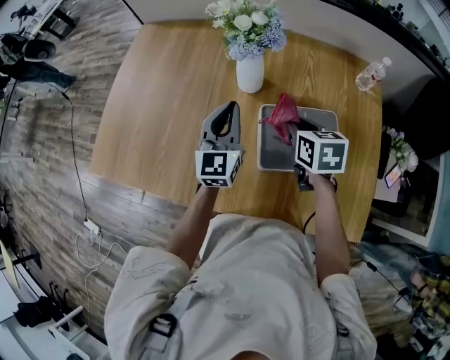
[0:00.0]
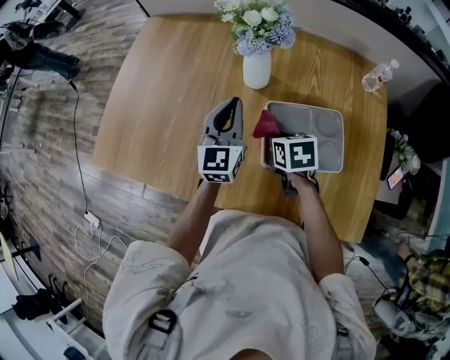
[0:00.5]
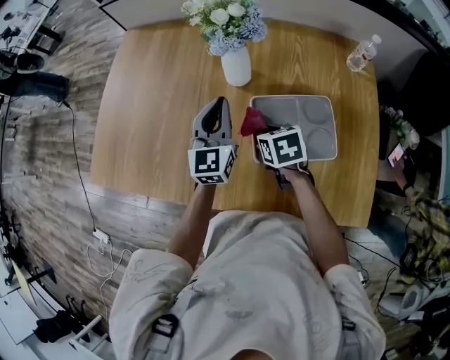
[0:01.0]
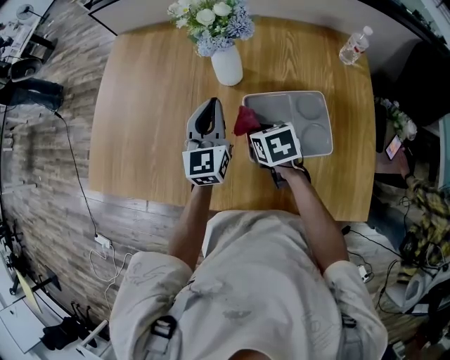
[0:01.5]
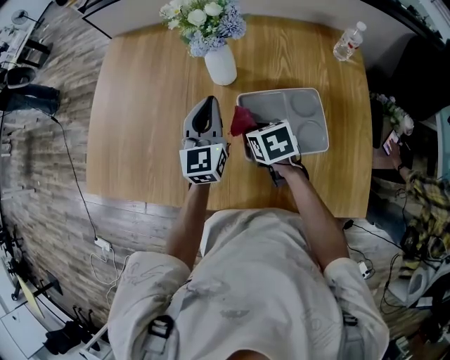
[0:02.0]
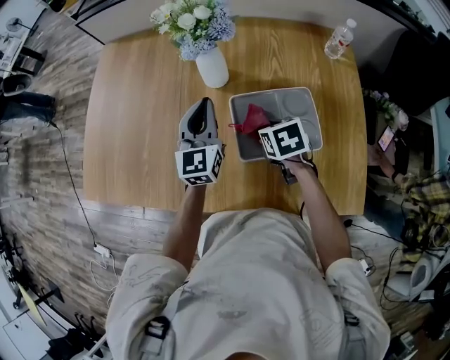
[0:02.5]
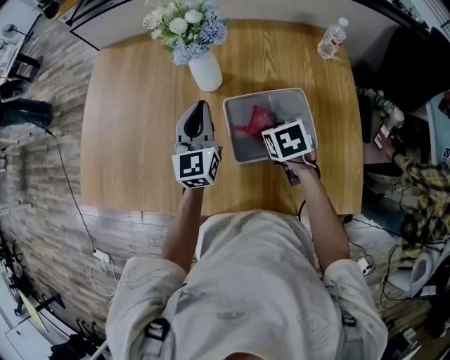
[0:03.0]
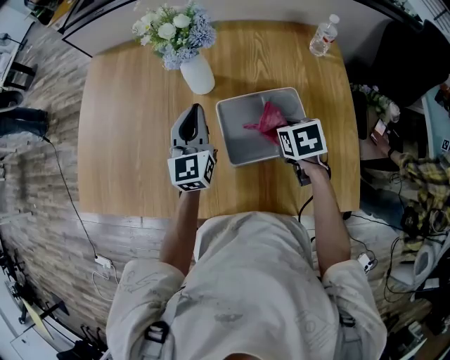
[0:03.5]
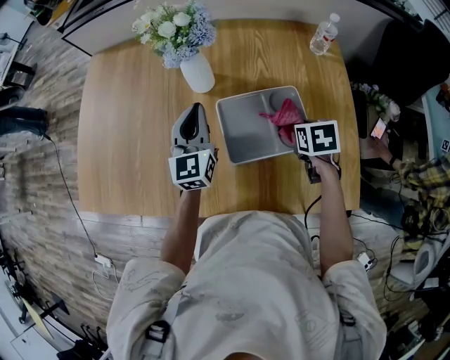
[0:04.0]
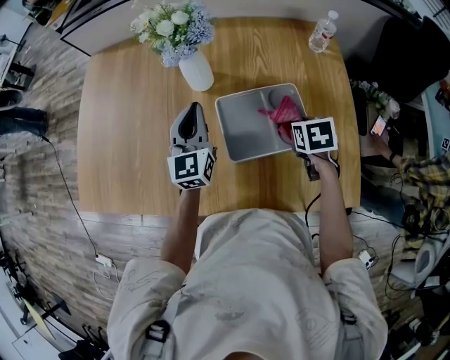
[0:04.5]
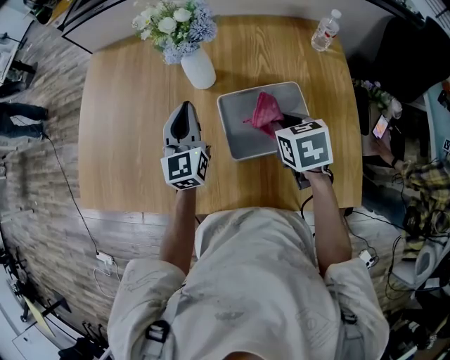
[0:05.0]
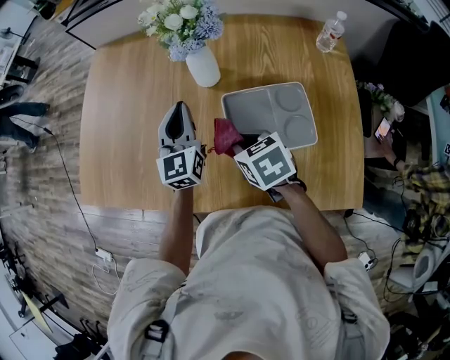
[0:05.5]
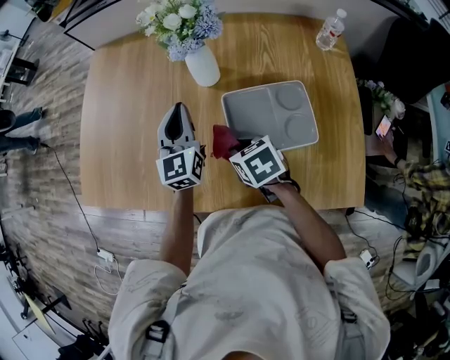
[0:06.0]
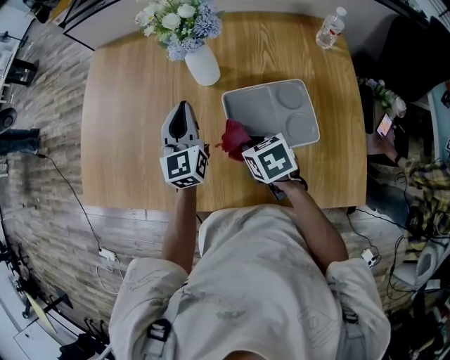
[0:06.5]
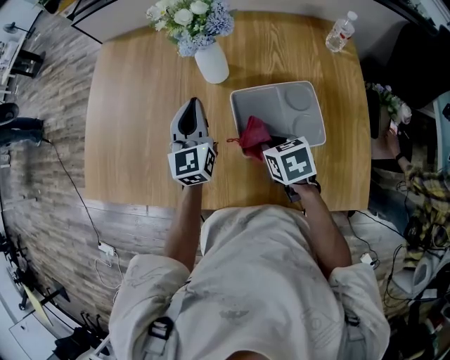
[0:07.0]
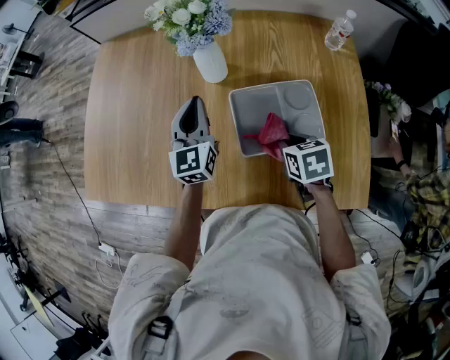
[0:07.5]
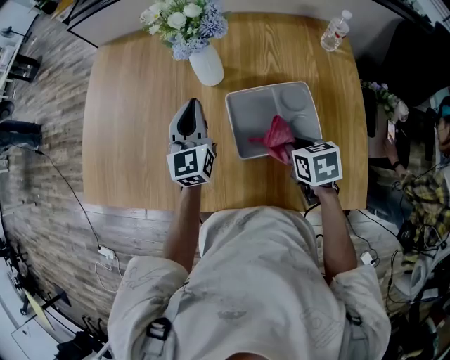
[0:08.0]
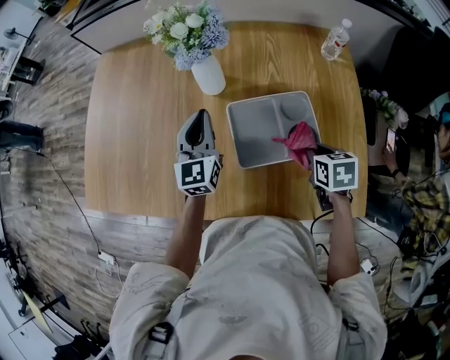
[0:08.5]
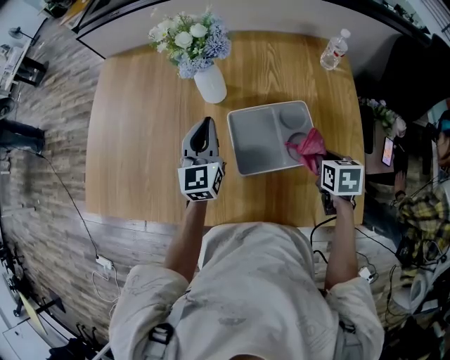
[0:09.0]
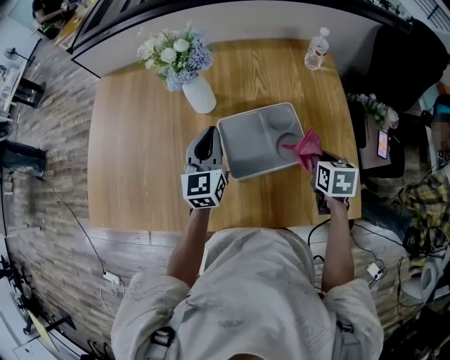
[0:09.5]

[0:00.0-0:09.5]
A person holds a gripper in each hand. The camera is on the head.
0:00.0 to 0:02.0: The right gripper is displaced downward and to the left by approximately 10 cm.
0:02.0 to 0:04.0: The right gripper is displaced to the right by some 20 cm, and swivels roughly 20 degrees.
0:04.0 to 0:05.5: The left gripper shifts approximately 5 cm to the left, while the right gripper heads to the left, covering approximately 20 cm, and swivels approximately 30 degrees.
0:05.5 to 0:07.5: The right gripper heads to the right, covering about 10 cm.
0:07.5 to 0:09.5: The left gripper shifts some 5 cm to the right; the right gripper shifts approximately 15 cm to the right, and changes its angle by about 20 degrees.

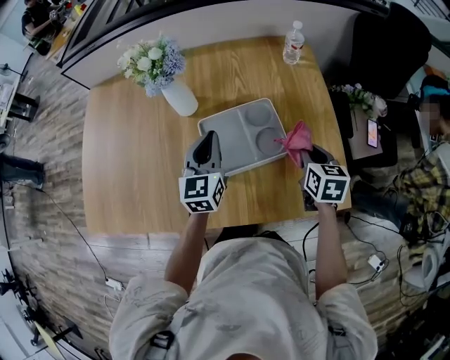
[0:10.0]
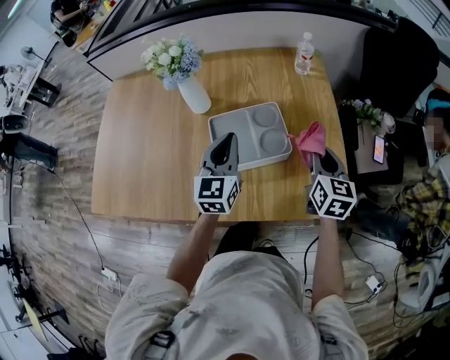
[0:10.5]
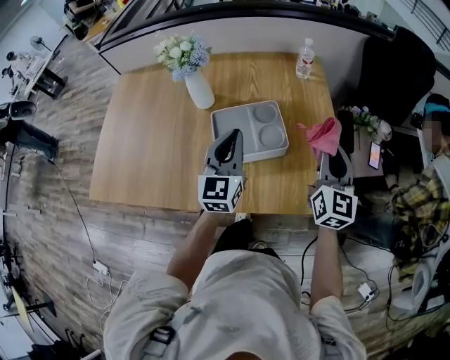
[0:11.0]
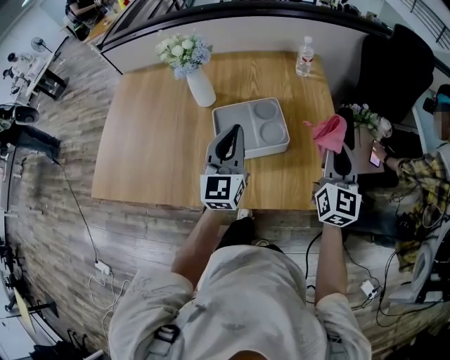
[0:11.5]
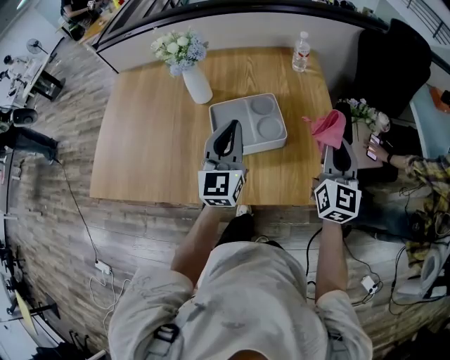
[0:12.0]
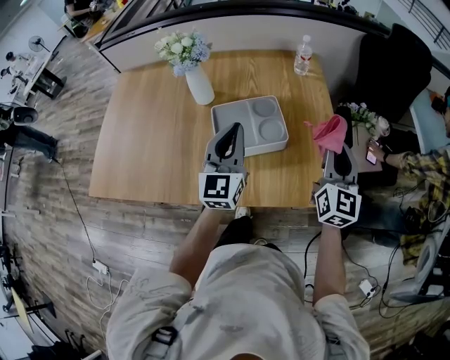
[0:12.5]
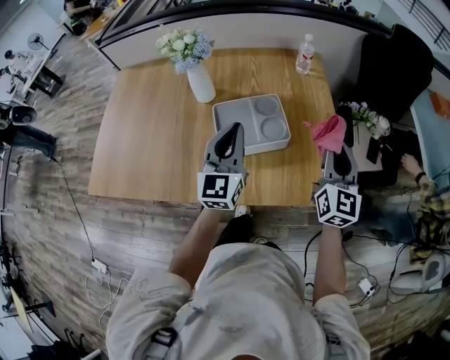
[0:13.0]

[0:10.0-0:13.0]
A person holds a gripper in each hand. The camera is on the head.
0:10.0 to 0:11.5: The left gripper heads upward, backward and to the right, covering roughly 15 cm, while the right gripper heads upward, covering some 15 cm, and angles its fingers upward, by some 40 degrees.
0:11.5 to 0:13.0: Both grippers stay about where they are.

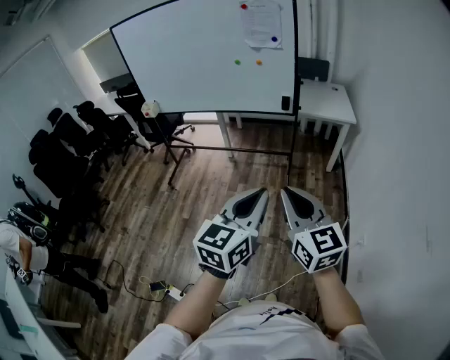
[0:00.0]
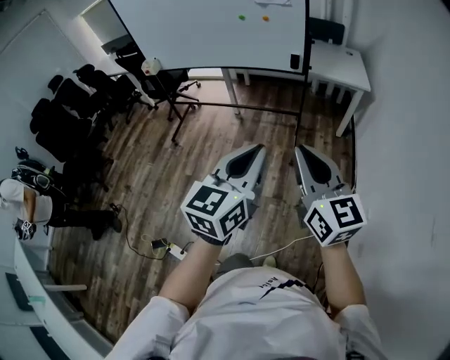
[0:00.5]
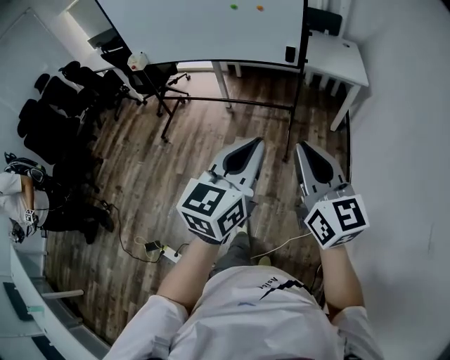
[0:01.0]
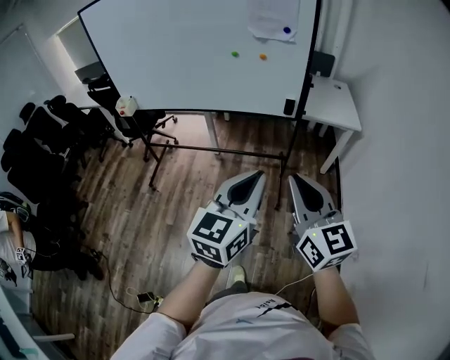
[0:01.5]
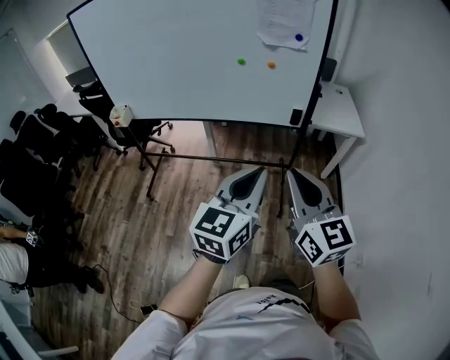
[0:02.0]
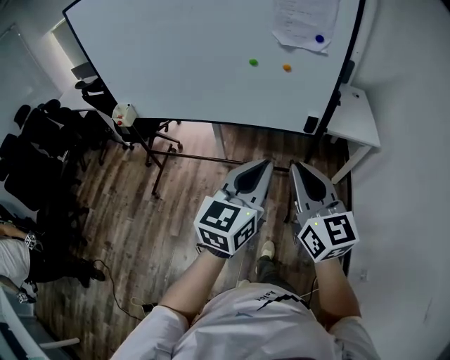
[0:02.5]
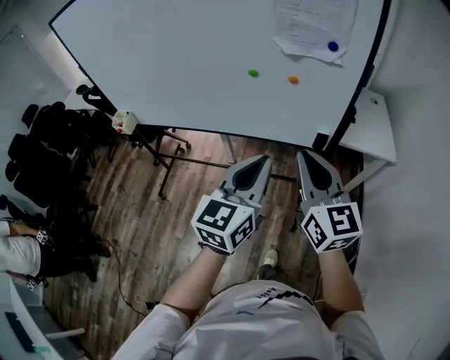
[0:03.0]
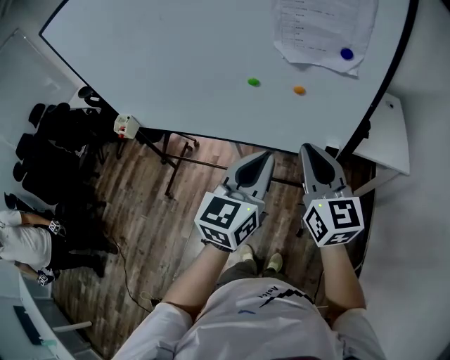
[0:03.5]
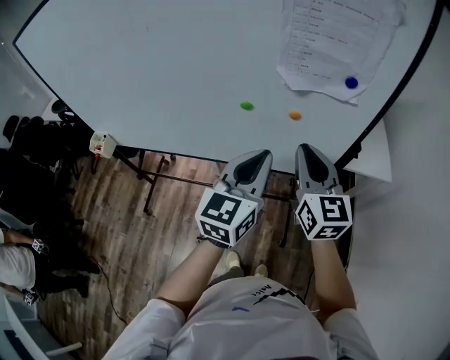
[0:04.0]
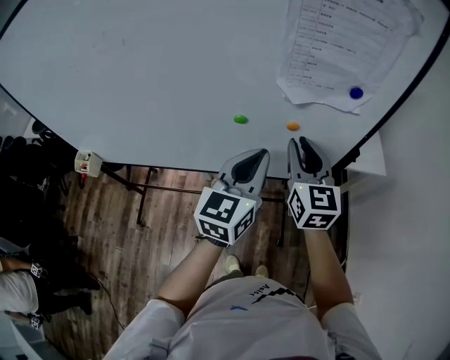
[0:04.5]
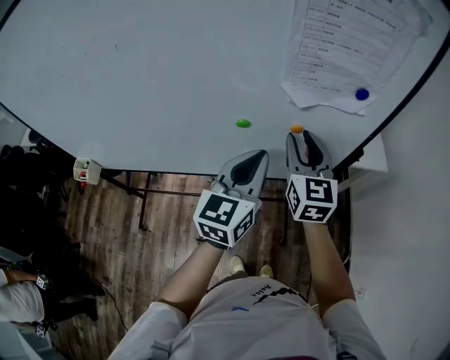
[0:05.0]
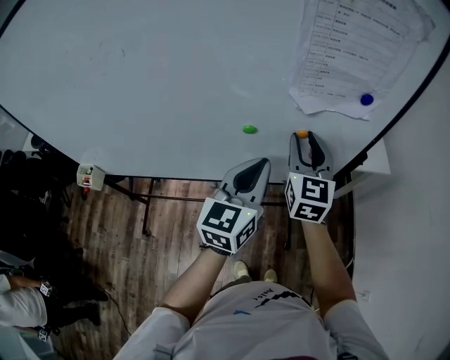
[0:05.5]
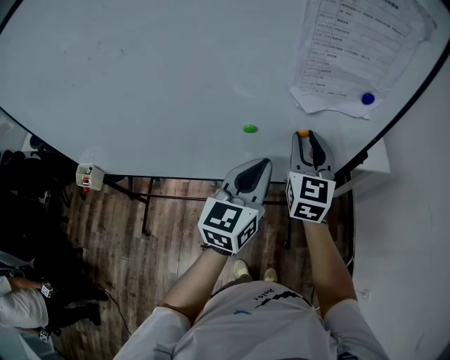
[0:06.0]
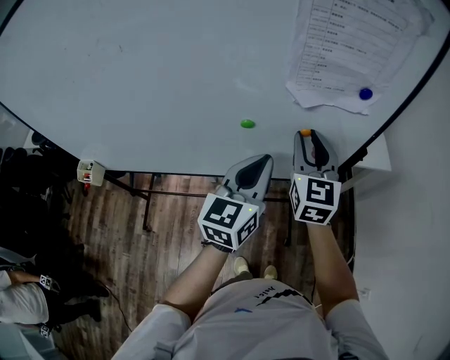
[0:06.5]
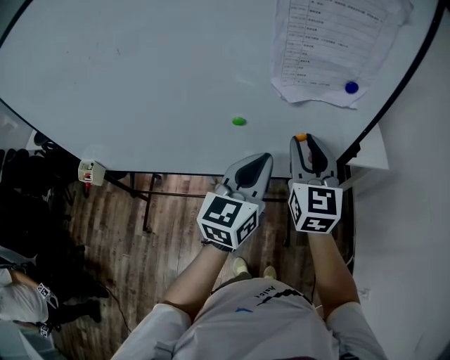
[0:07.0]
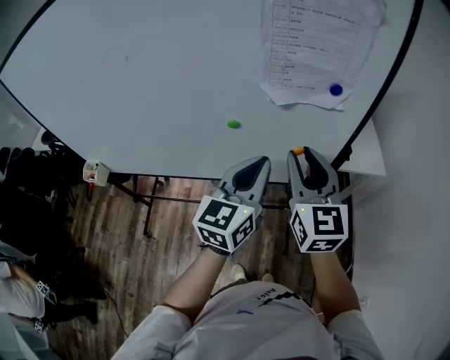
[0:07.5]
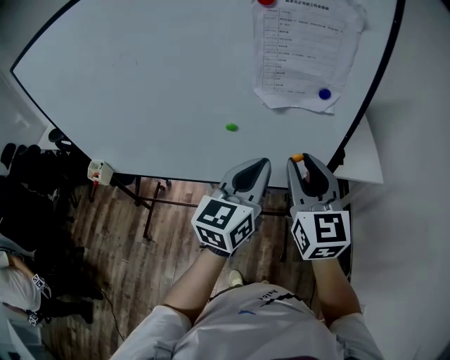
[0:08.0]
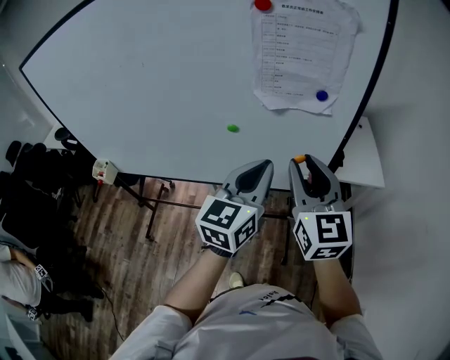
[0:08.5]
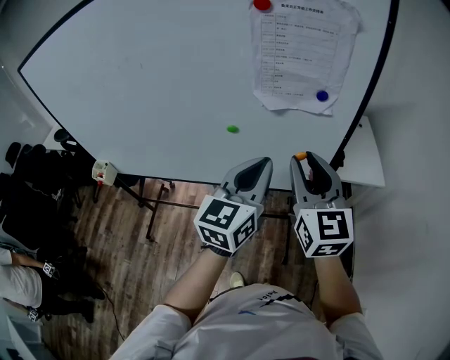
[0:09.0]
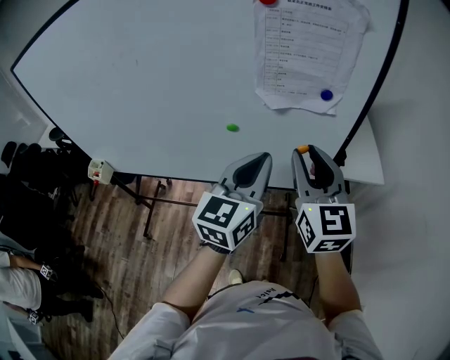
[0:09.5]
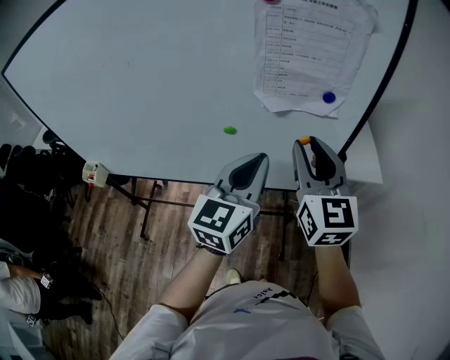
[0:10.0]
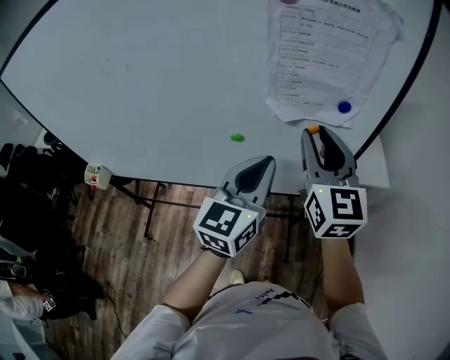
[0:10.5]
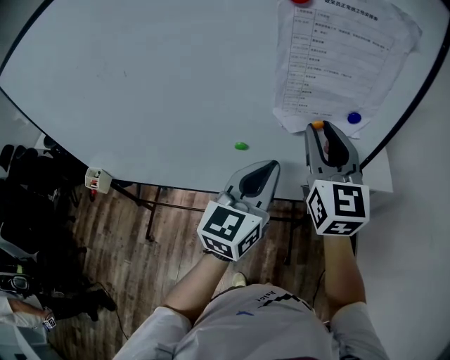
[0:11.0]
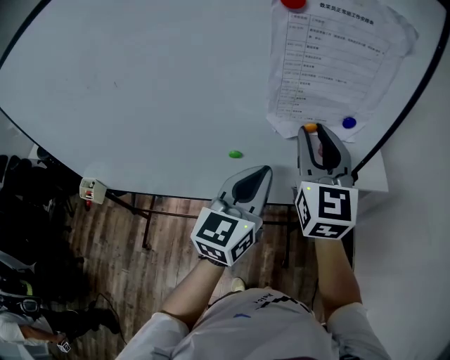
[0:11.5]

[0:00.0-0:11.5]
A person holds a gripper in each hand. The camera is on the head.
0:00.0 to 0:02.0: Both grippers travel together forward, about 35 cm.
0:02.0 to 0:04.0: The pair of grippers is taken forward, some 40 cm.
0:04.0 to 0:06.0: The right gripper goes some 10 cm forward, turns by approximately 20 degrees, and opens up. The left gripper heads forward, covering approximately 5 cm.
0:06.0 to 0:07.5: The right gripper shifts approximately 10 cm backward and upward. Meanwhile the left gripper is displaced to the right by approximately 5 cm.
0:07.5 to 0:09.5: The grippers make only small movements.
0:09.5 to 0:11.5: The left gripper moves forward, about 5 cm, while the right gripper shifts roughly 10 cm forward.

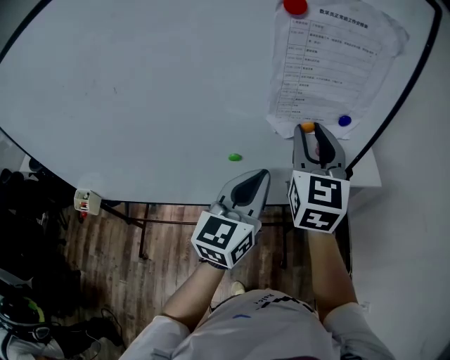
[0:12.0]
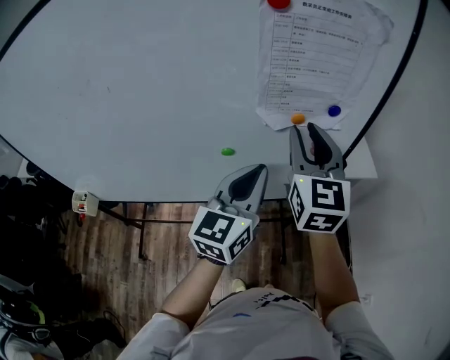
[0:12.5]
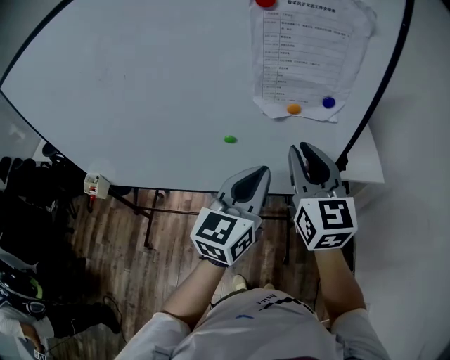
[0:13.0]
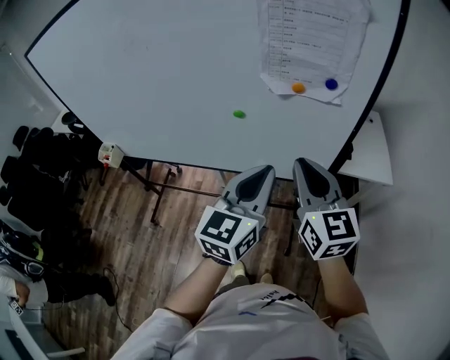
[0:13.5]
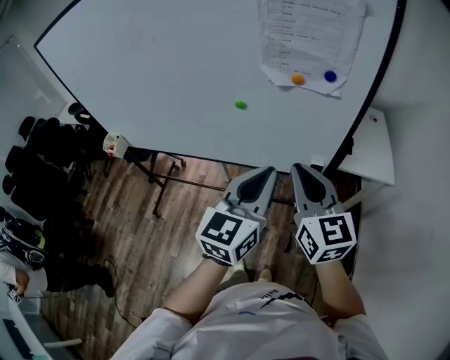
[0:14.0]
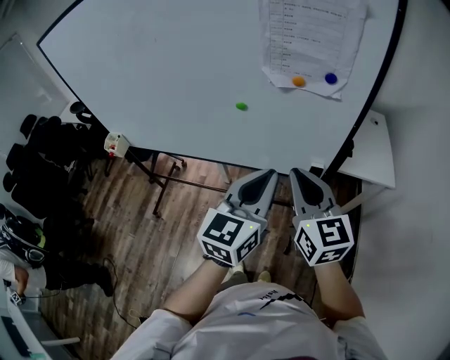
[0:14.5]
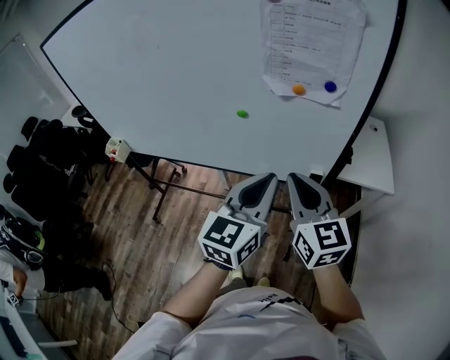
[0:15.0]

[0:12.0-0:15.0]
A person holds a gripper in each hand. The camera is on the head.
0:12.0 to 0:13.5: The left gripper heads backward and to the right, covering about 15 cm. The right gripper shifts roughly 15 cm backward, changes its angle by roughly 30 degrees, and closes its fingers.
0:13.5 to 0:15.0: The grippers make only small movements.
